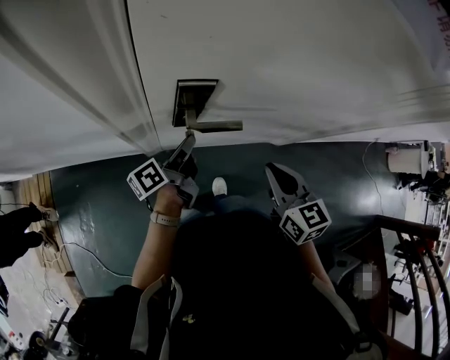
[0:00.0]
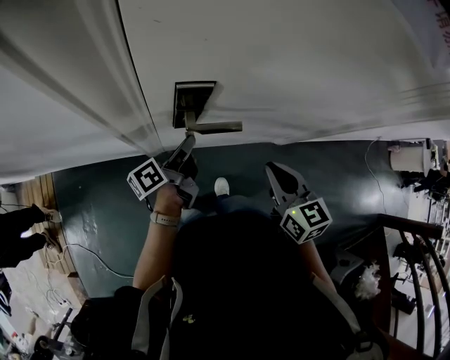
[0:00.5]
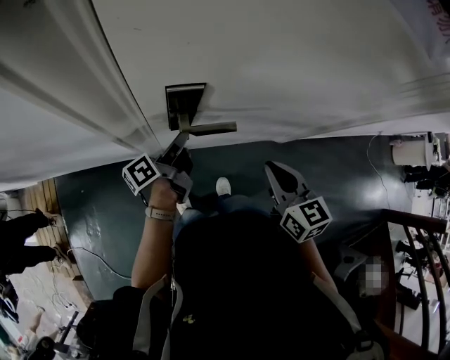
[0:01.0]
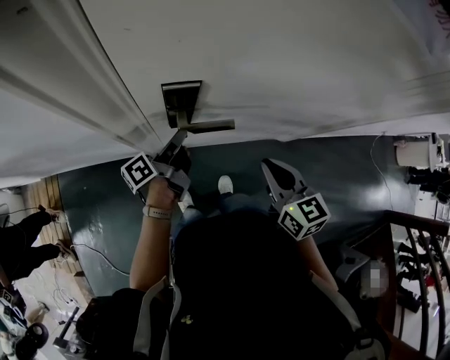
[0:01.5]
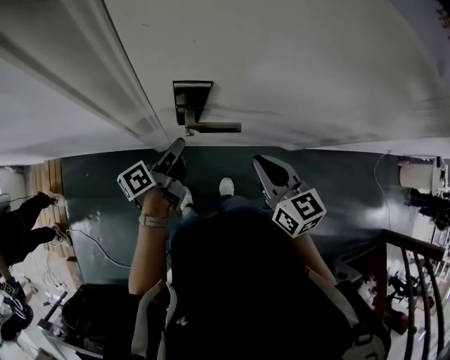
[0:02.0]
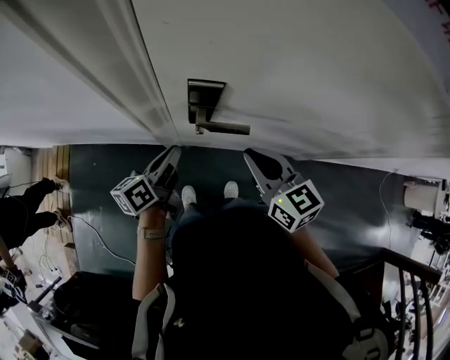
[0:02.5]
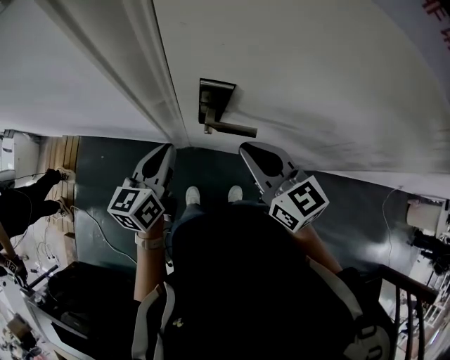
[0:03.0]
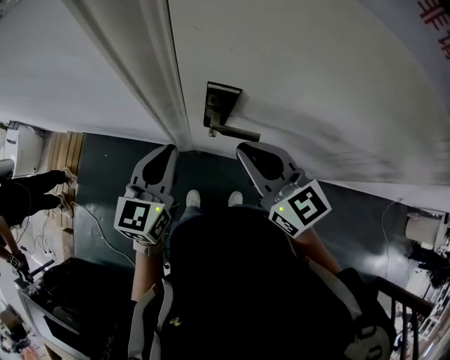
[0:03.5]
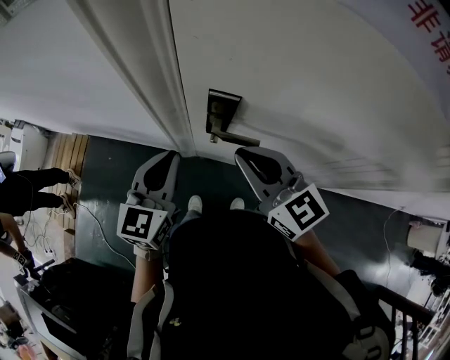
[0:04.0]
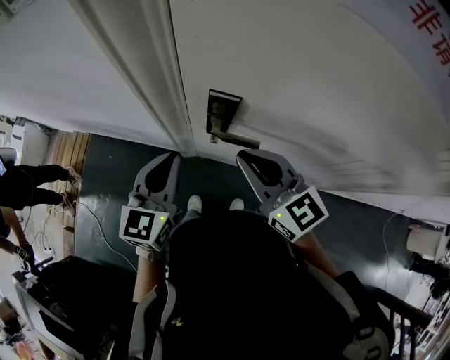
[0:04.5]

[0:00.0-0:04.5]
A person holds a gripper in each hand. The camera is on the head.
0:00.0 to 0:02.0: The grippers move only a little.
0:02.0 to 0:04.5: The left gripper travels upward by about 15 cm, and twists approximately 70 degrees clockwise, seen from behind, while the right gripper moves upward, about 10 cm, and changes its angle by roughly 30 degrees.

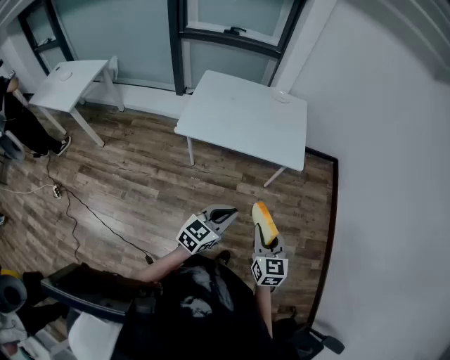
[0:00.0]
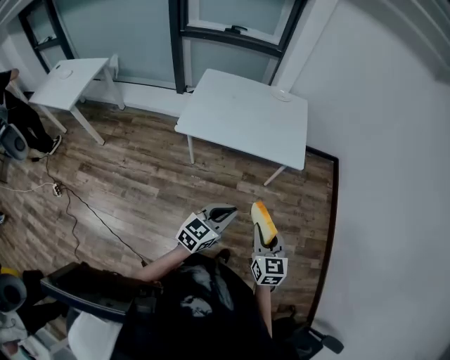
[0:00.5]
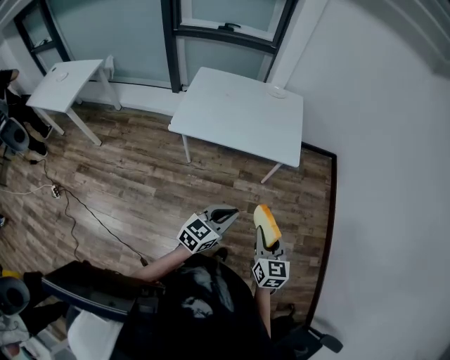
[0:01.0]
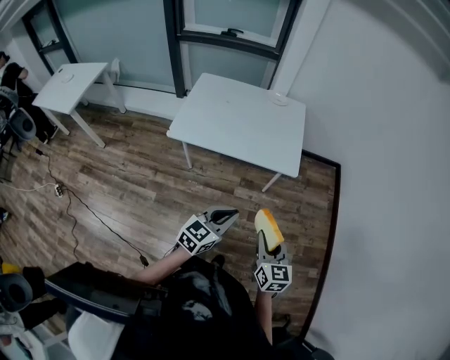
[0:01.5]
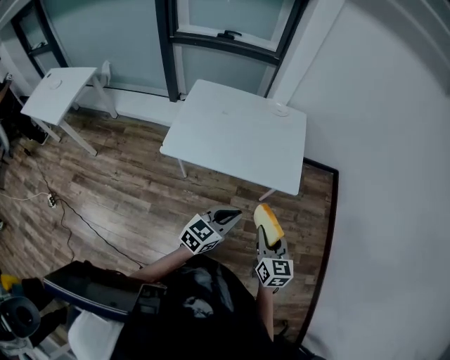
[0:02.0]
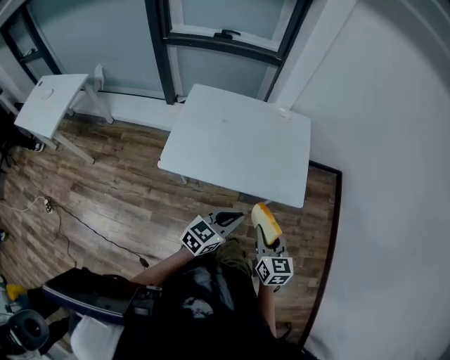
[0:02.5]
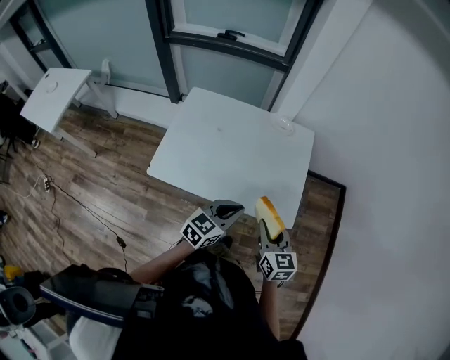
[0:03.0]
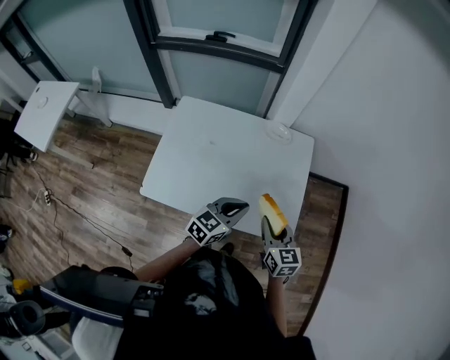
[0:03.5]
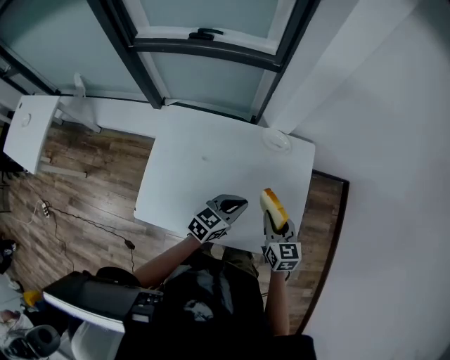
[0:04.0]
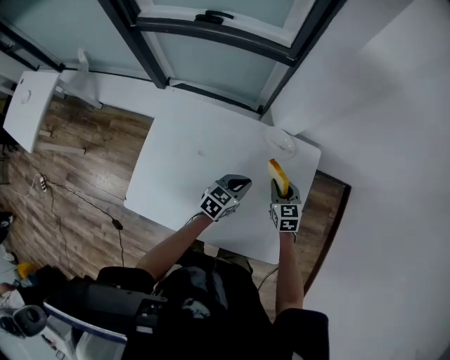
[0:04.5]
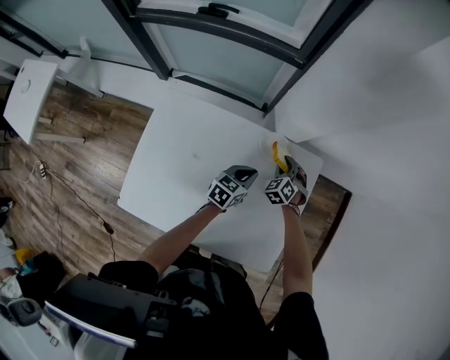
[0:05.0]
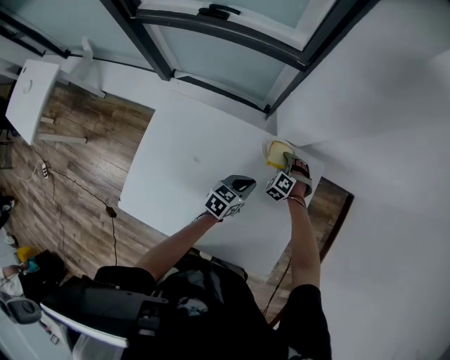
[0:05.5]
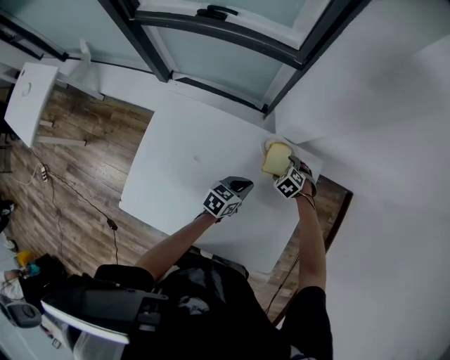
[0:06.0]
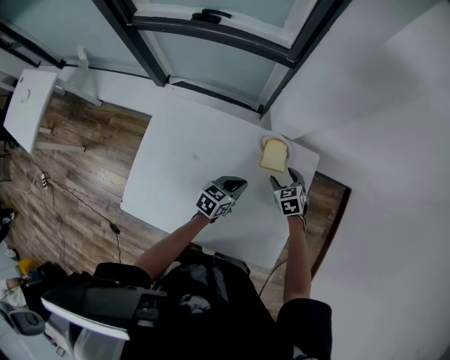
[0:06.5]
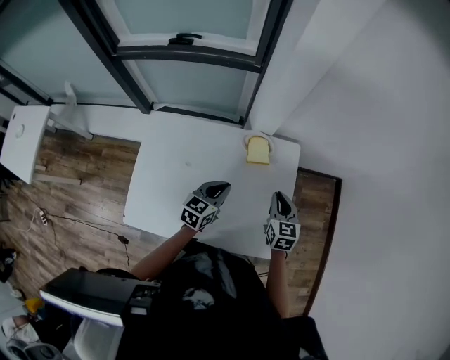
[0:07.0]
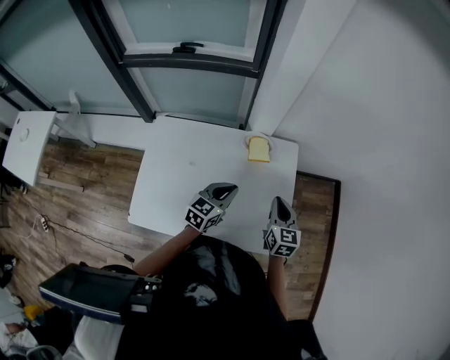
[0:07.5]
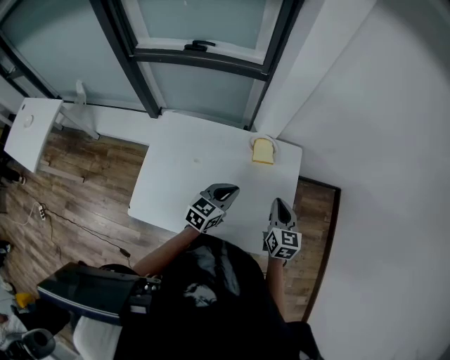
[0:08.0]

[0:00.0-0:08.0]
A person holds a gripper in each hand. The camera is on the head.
0:00.0 to 0:02.0: The grippers both shift forward by roughly 15 cm.
0:02.0 to 0:04.0: The two grippers travel together, forward, about 50 cm.
0:04.0 to 0:06.0: The right gripper moves some 35 cm, tips its fingers downward by approximately 50 degrees, and opens. Meanwhile the left gripper shifts by approximately 20 cm.
0:06.0 to 0:08.0: The left gripper goes about 15 cm upward, and changes its angle by roughly 20 degrees, while the right gripper shifts some 25 cm upward, tilts its fingers approximately 50 degrees upward, and closes up.

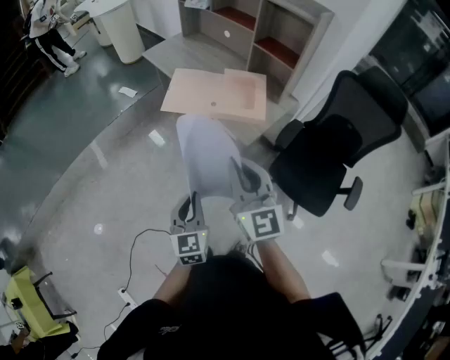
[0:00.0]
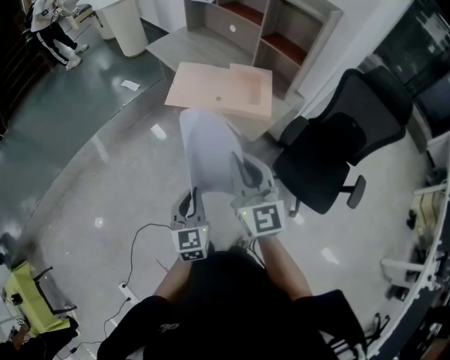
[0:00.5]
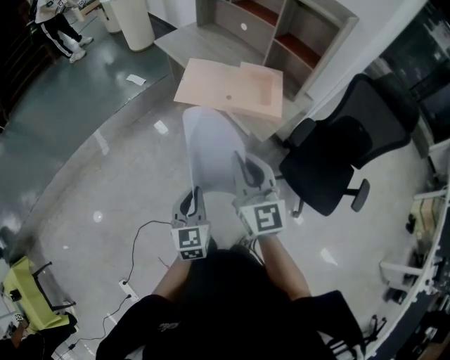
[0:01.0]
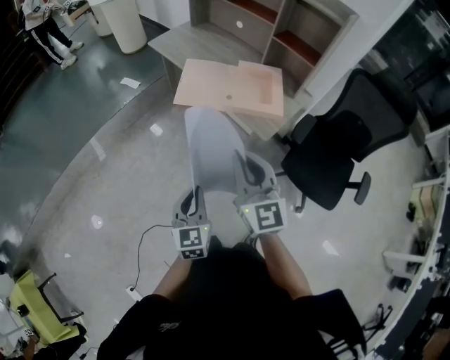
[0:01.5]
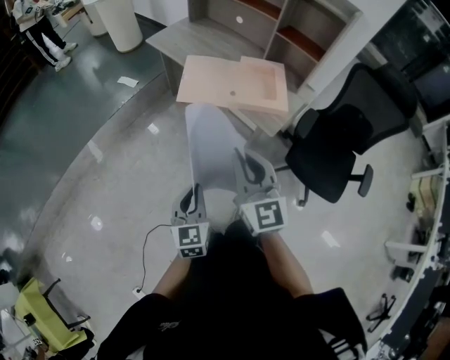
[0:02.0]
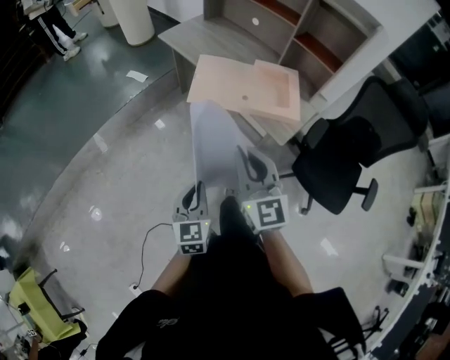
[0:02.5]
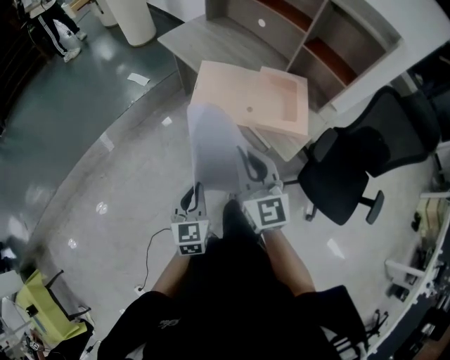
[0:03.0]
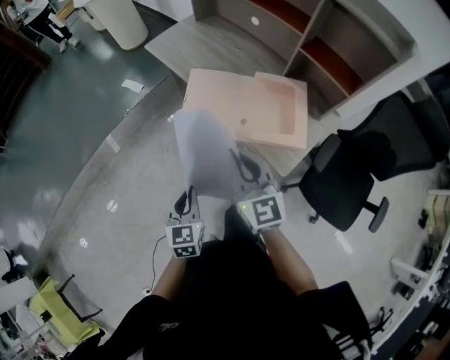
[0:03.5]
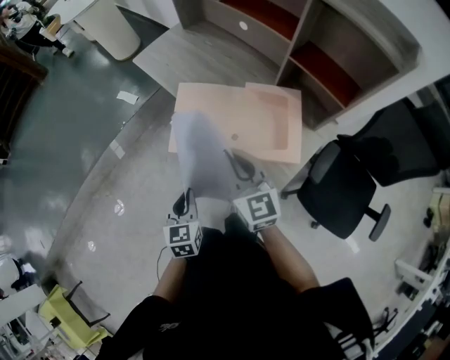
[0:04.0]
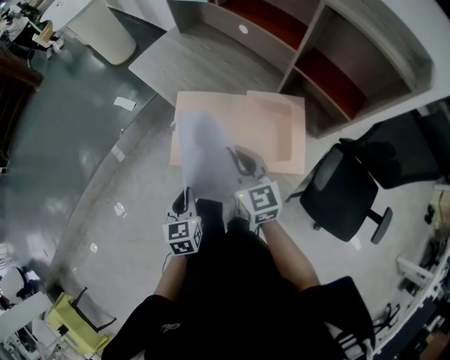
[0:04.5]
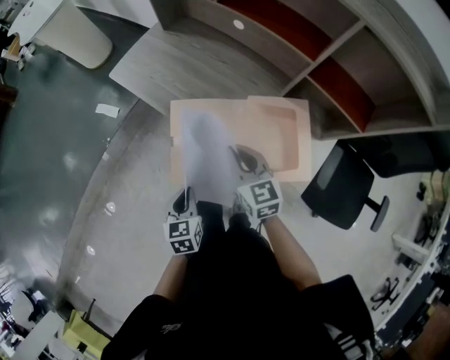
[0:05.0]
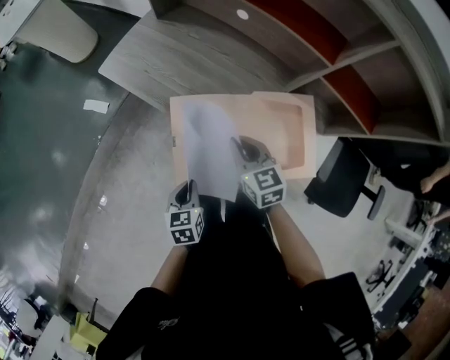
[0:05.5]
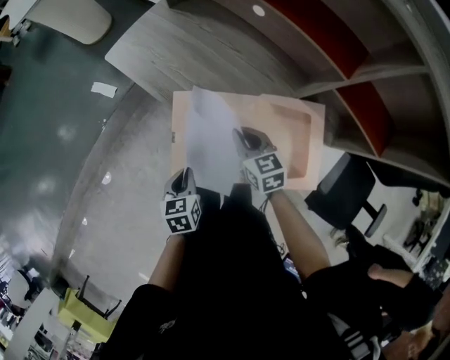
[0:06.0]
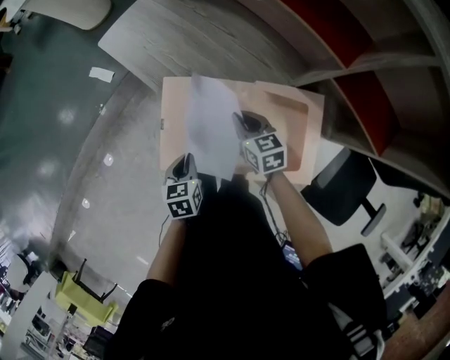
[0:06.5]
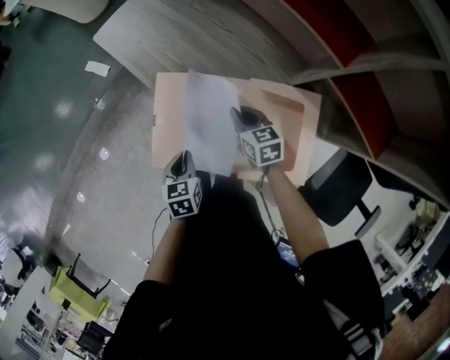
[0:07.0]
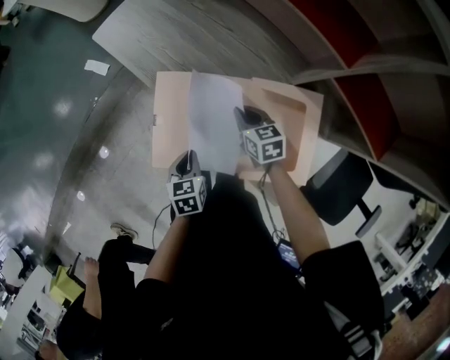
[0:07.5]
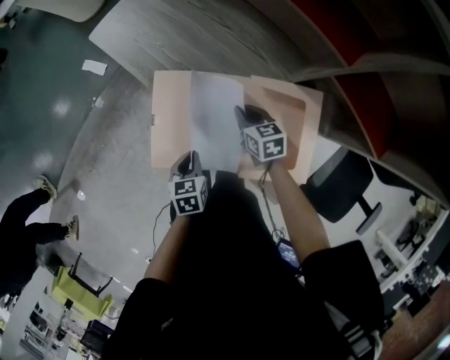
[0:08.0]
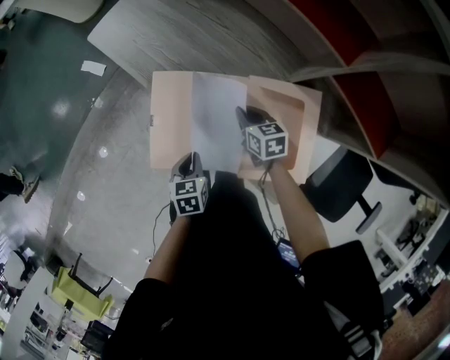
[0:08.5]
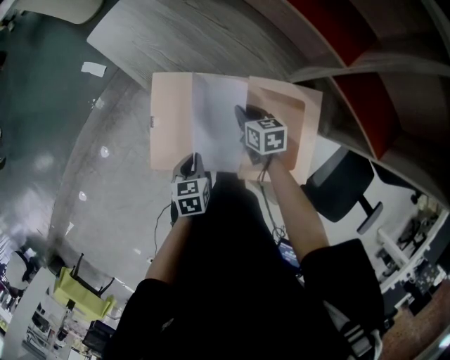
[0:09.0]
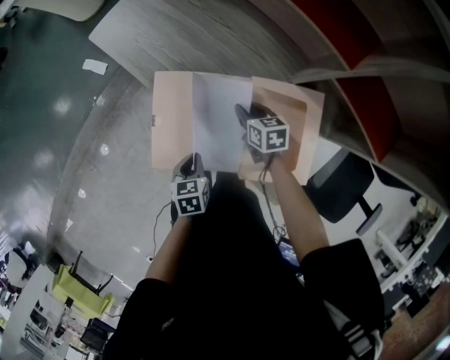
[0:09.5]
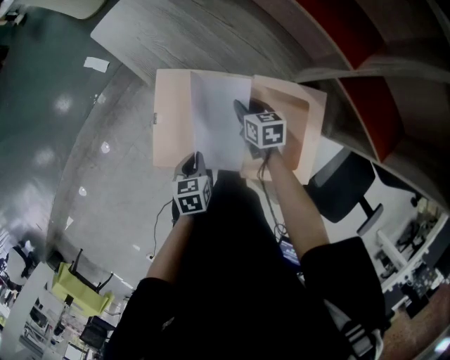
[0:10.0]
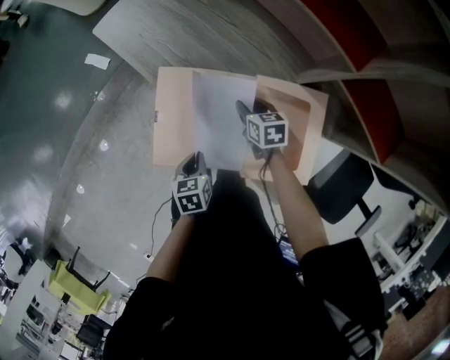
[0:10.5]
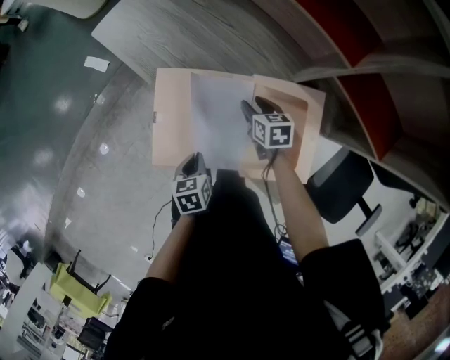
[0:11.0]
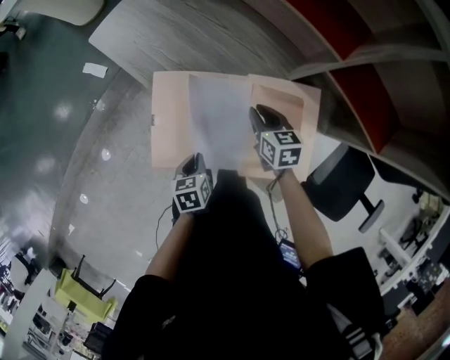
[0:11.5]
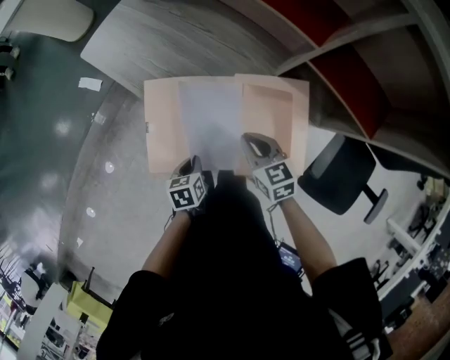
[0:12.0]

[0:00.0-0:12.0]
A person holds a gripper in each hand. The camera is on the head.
0:00.0 to 0:02.0: Both grippers travel together to the left and forward, roughly 15 cm.
0:02.0 to 0:04.0: The grippers both shift forward by approximately 30 cm.
0:04.0 to 0:06.0: Both grippers travel together forward and downward, some 25 cm. The right gripper swivels about 30 degrees, while the left gripper rotates about 20 degrees.
0:06.0 to 0:08.0: The right gripper moves downward and to the right, roughly 10 cm; the left gripper travels to the right and downward by about 10 cm.
0:08.0 to 0:10.0: The grippers make only small movements.
0:10.0 to 0:12.0: The right gripper is displaced backward and upward by approximately 15 cm.

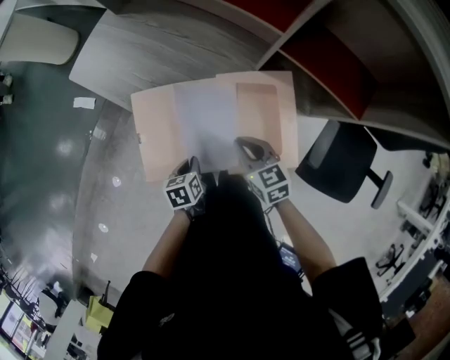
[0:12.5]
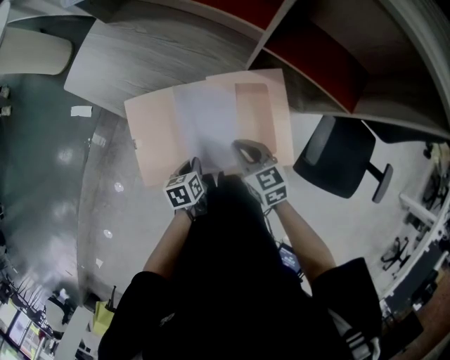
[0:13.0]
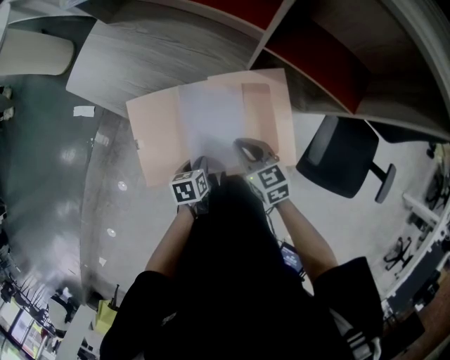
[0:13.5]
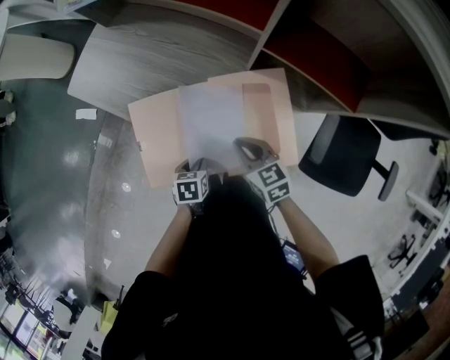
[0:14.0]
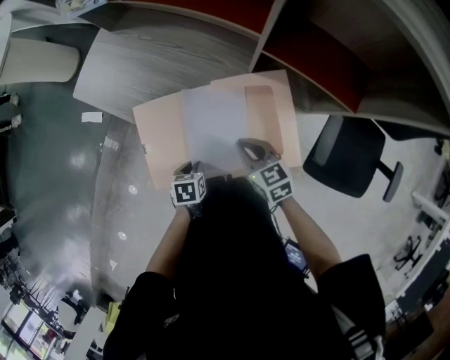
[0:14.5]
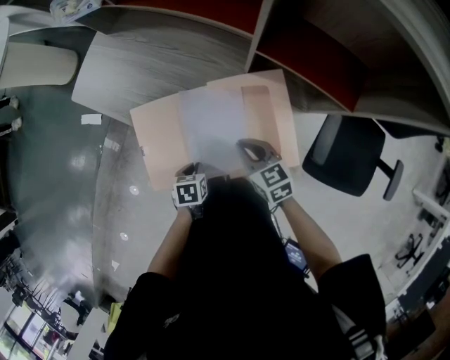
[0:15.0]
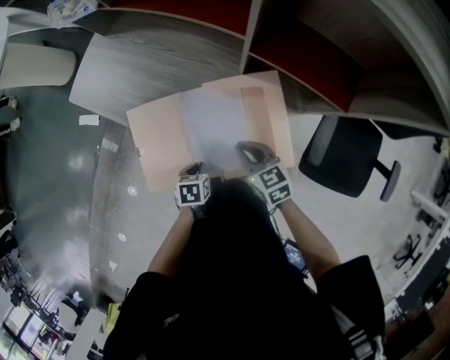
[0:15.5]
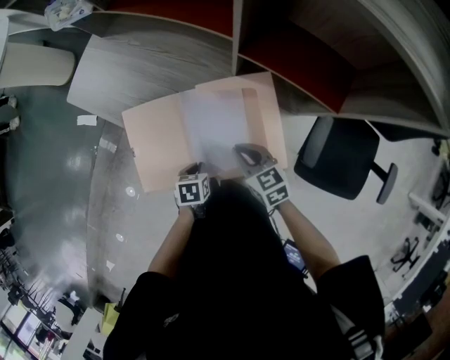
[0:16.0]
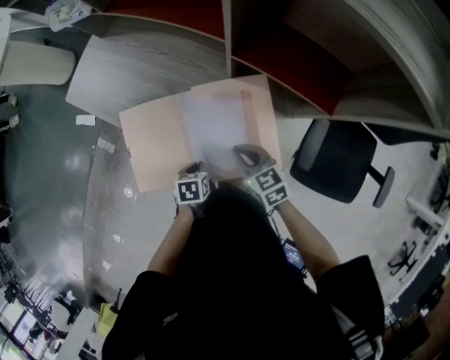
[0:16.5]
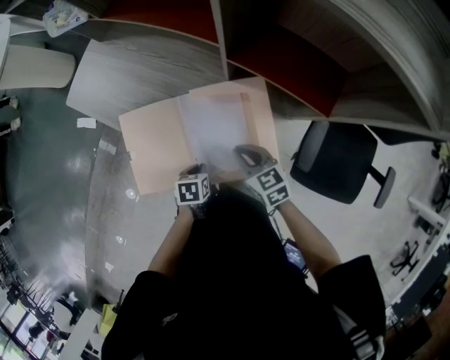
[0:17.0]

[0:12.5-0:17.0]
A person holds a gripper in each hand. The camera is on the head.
0:12.5 to 0:14.5: There are only small adjustments of the grippers.
0:14.5 to 0:17.0: Both grippers move to the right, roughly 10 cm.
